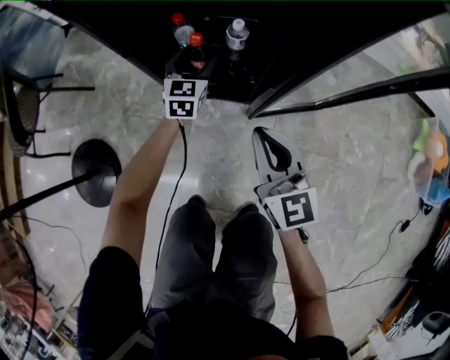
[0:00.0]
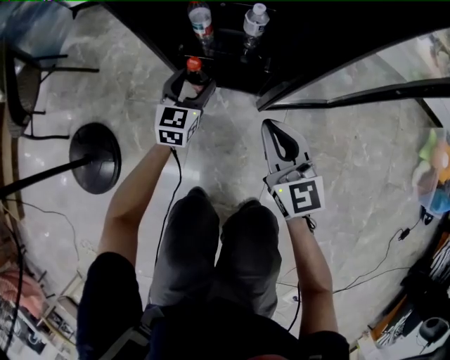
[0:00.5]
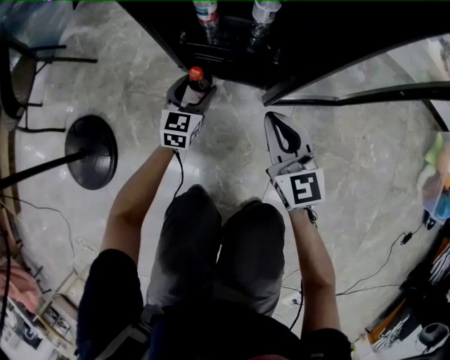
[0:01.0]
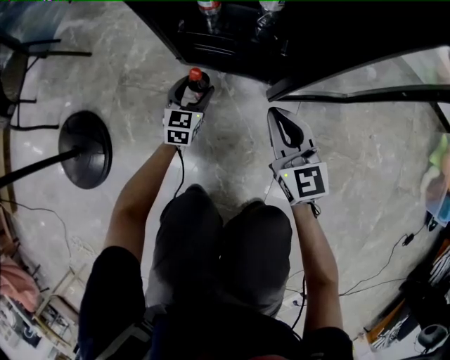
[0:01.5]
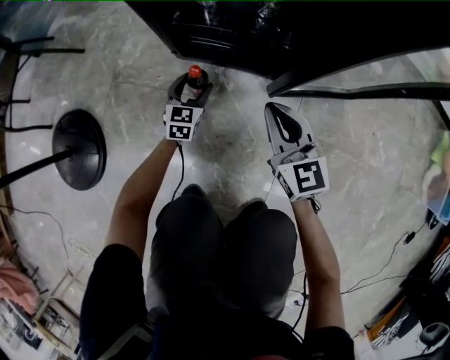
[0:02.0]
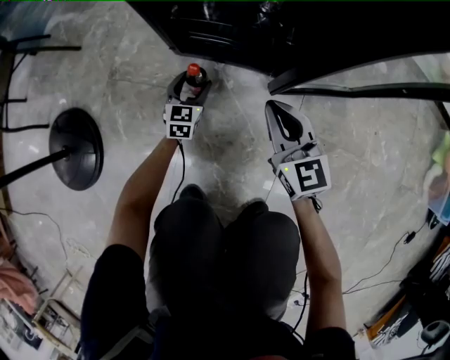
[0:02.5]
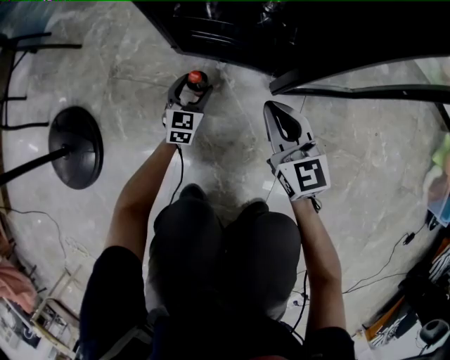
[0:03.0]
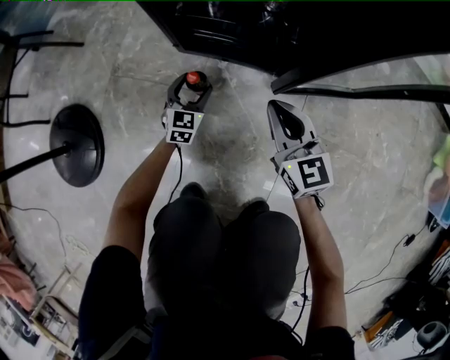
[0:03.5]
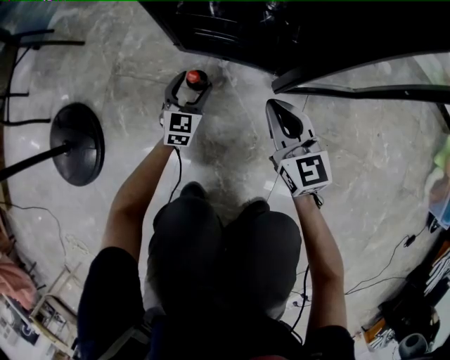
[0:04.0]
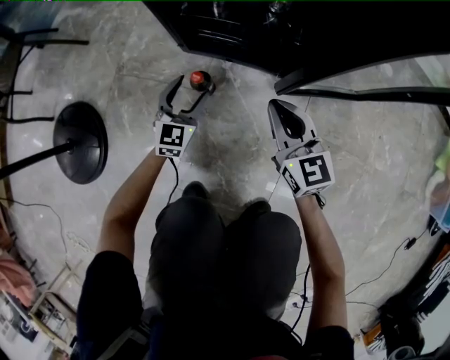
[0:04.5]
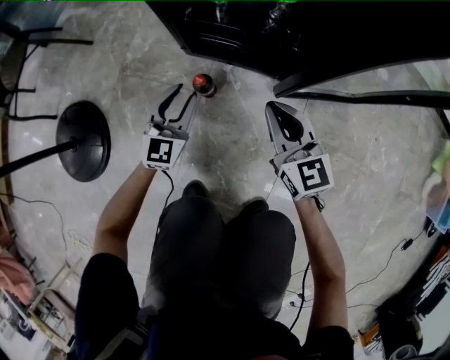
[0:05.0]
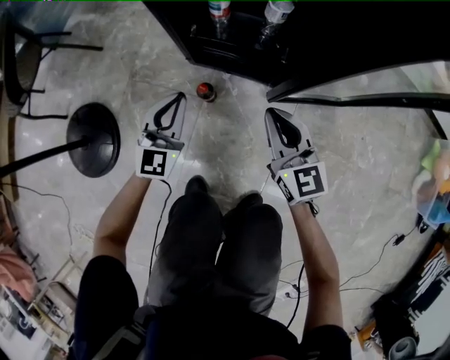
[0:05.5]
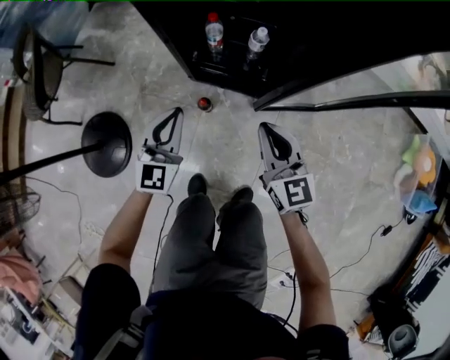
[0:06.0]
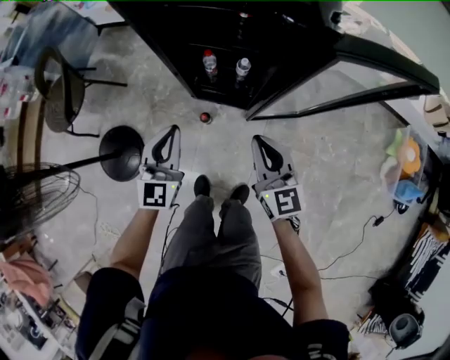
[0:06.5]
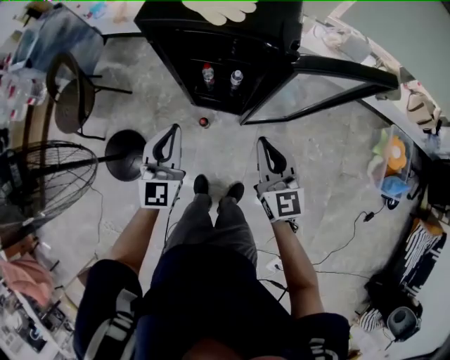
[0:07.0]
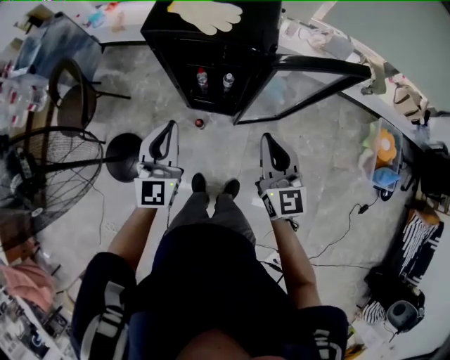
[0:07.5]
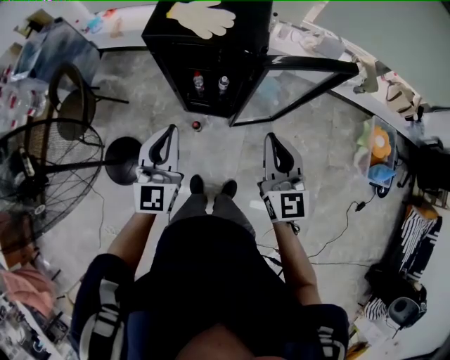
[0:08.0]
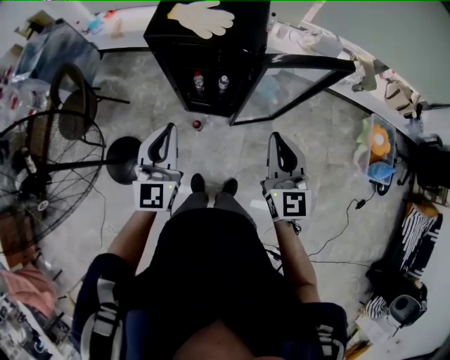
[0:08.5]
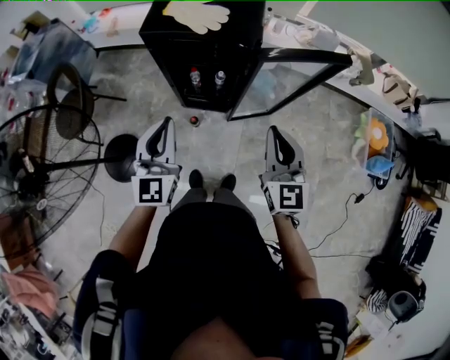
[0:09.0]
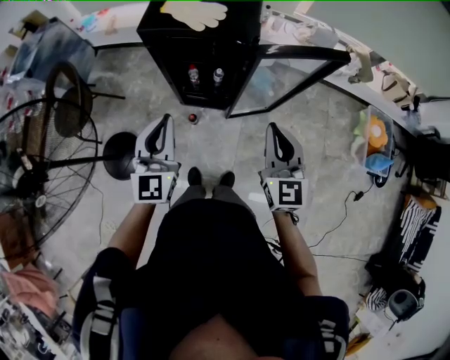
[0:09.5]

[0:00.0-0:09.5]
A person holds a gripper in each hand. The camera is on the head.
0:00.0 to 0:02.0: The right gripper travels downward by some 20 cm, while the left gripper moves downward and backward, approximately 30 cm.
0:02.0 to 0:04.0: The grippers make only small movements.
0:04.0 to 0:05.5: The right gripper moves upward, roughly 15 cm. The left gripper moves upward, some 25 cm, and closes.
0:05.5 to 0:07.5: Both grippers travel together upward, approximately 70 cm.
0:07.5 to 0:09.5: Both grippers travel together upward, about 5 cm.

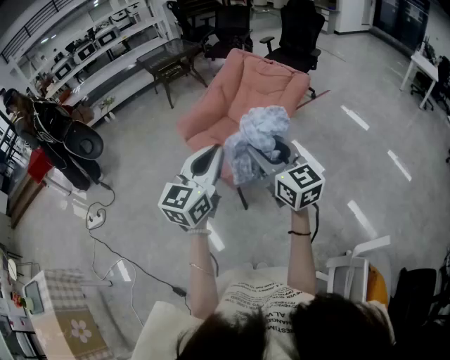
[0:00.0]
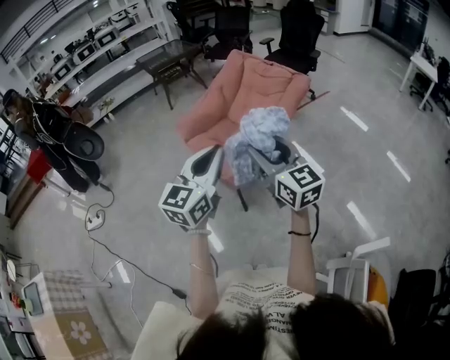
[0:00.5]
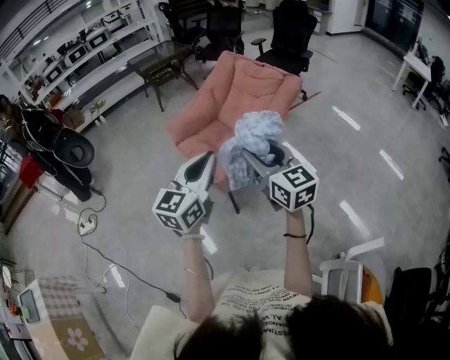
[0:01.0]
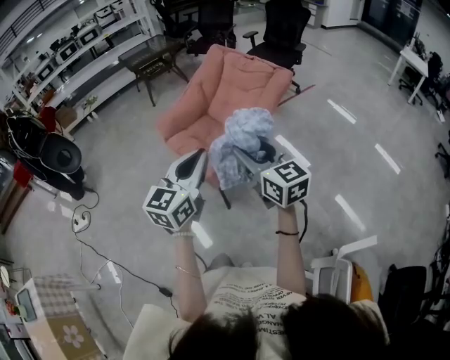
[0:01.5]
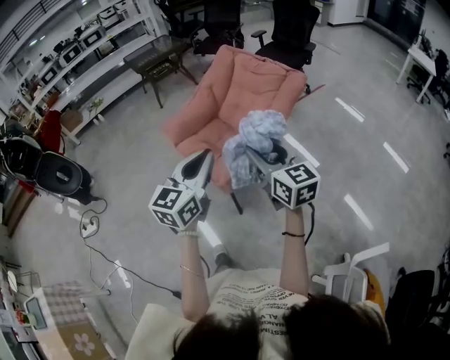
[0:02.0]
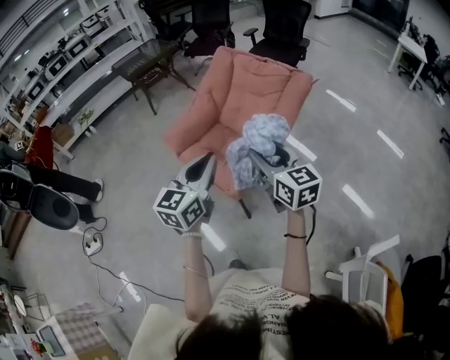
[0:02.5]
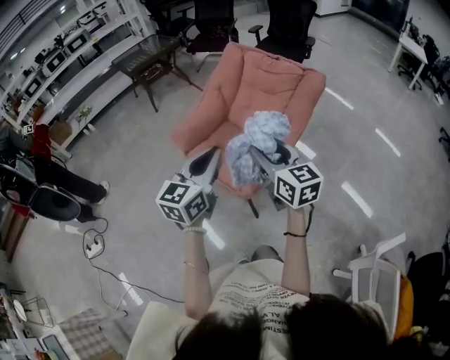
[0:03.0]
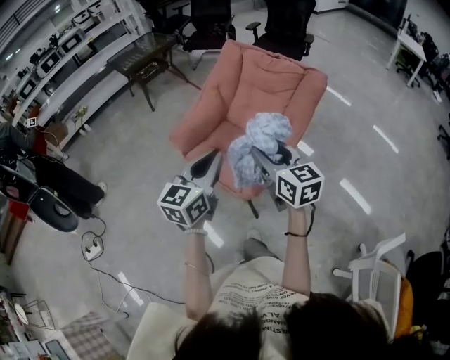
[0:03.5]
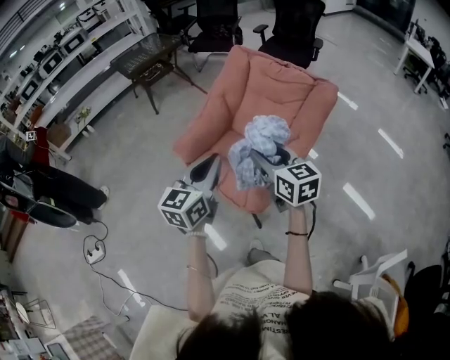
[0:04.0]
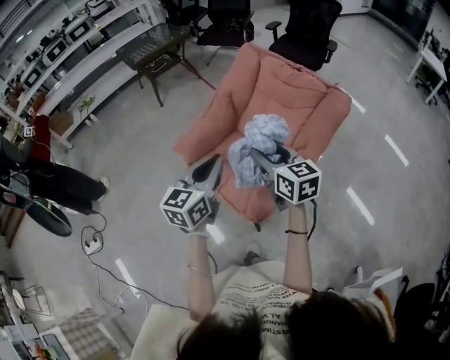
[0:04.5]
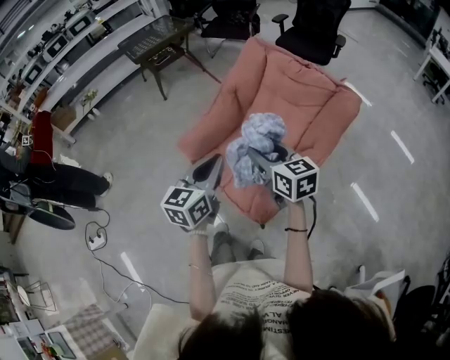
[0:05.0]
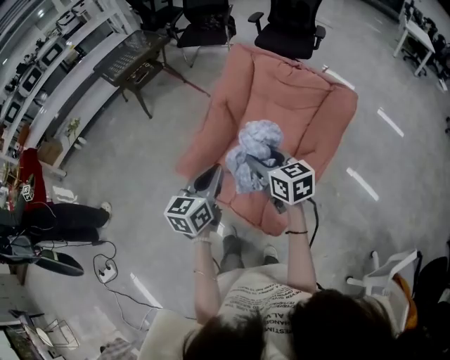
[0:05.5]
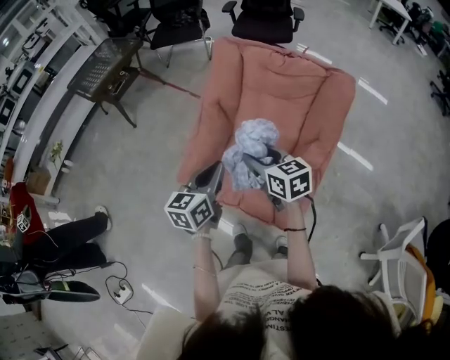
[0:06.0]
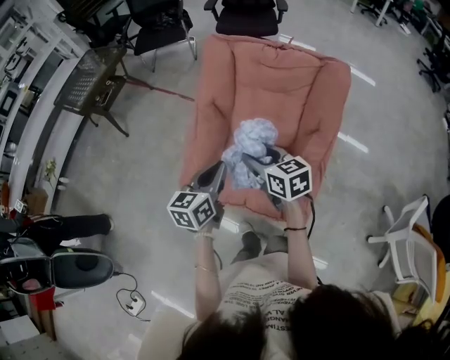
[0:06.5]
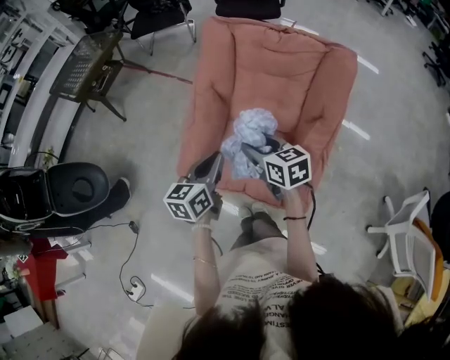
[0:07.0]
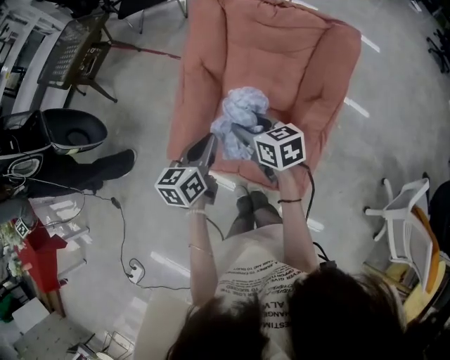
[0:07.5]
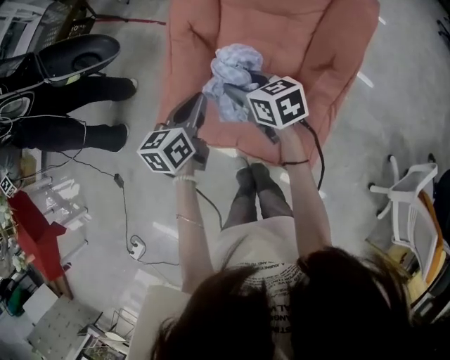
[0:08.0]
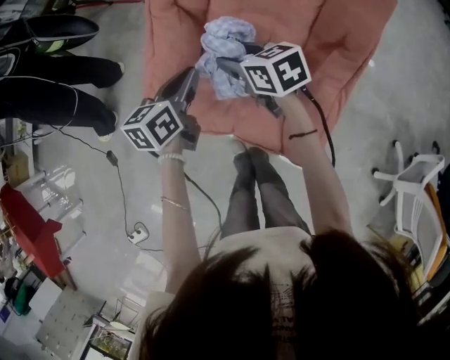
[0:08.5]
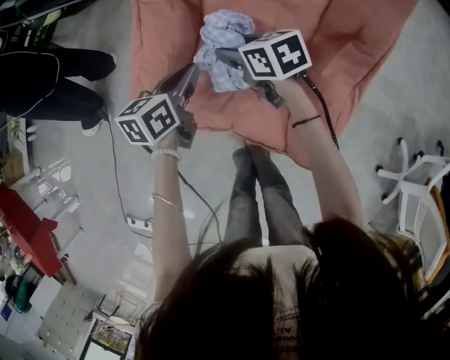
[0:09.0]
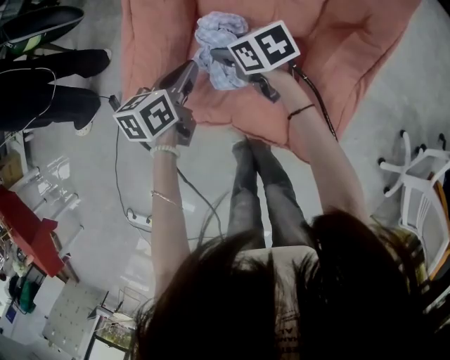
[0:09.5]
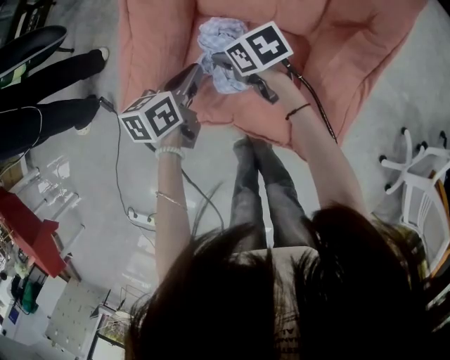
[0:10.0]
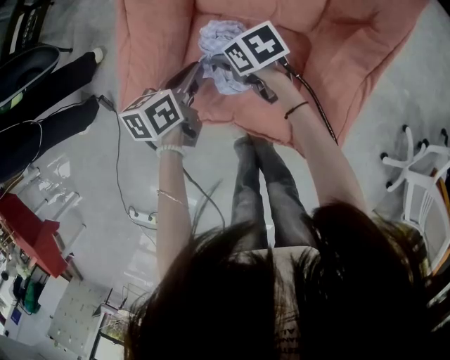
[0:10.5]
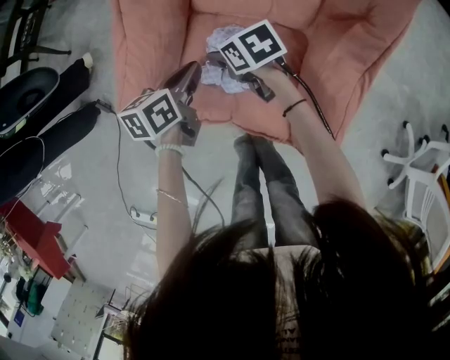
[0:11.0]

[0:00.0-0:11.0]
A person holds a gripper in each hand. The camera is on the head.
0:00.0 to 0:02.0: Both grippers move forward and downward, roughly 10 cm.
0:02.0 to 0:03.5: The grippers both shift to the left and forward by roughly 20 cm.
0:03.5 to 0:05.5: Both grippers travel together forward, some 25 cm.
0:05.5 to 0:07.5: The left gripper is displaced downward and forward by about 15 cm; the right gripper travels downward, forward and to the left by some 15 cm.
0:07.5 to 0:09.0: The grippers both shift downward and forward by some 25 cm.
0:09.0 to 0:11.0: Both grippers travel together downward, approximately 10 cm.

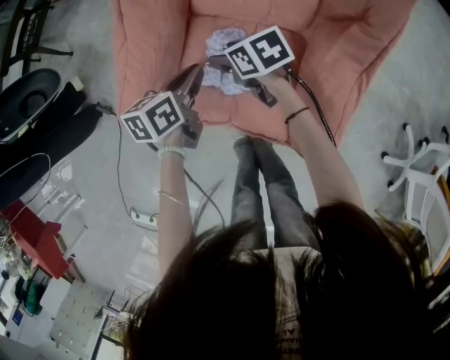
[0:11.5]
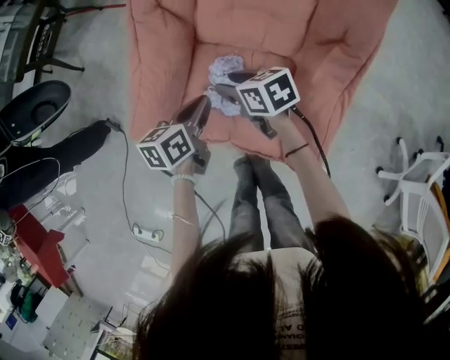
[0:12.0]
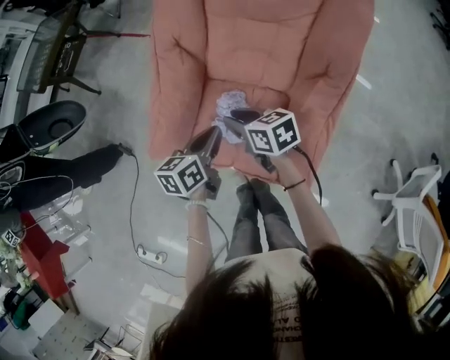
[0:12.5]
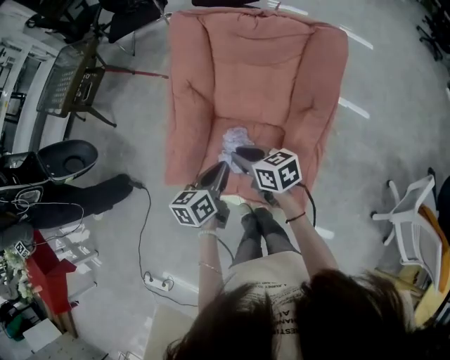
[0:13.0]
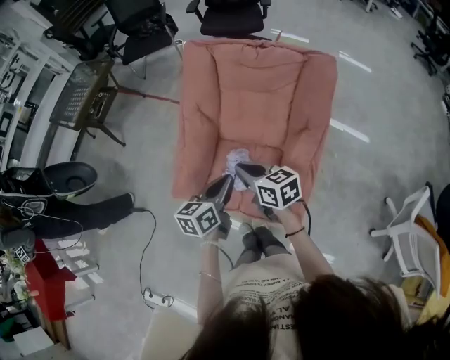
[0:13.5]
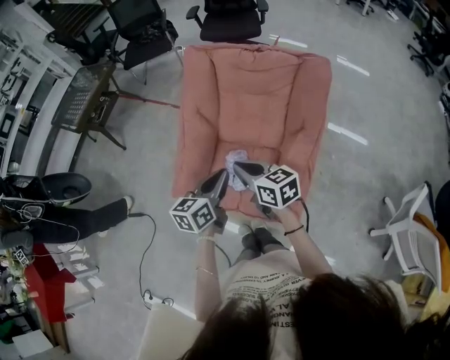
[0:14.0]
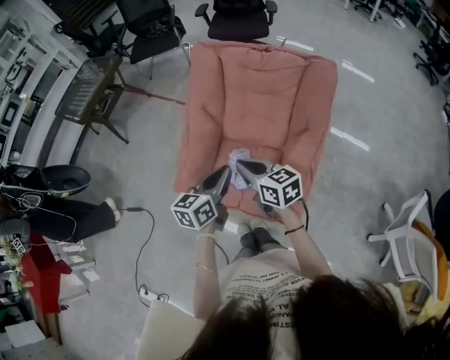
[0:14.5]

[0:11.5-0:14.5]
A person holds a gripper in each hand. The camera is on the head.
0:11.5 to 0:13.0: The left gripper heads upward and backward, covering roughly 25 cm. The right gripper shifts about 25 cm upward, changes its angle by some 20 degrees, and closes its fingers.
0:13.0 to 0:14.5: Both grippers move upward, approximately 10 cm.

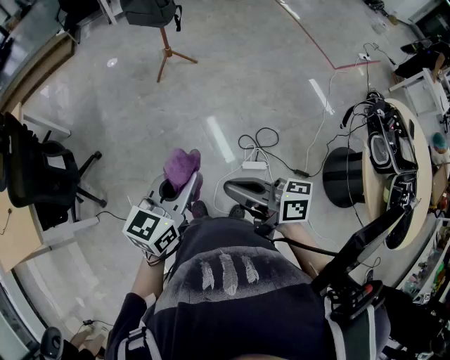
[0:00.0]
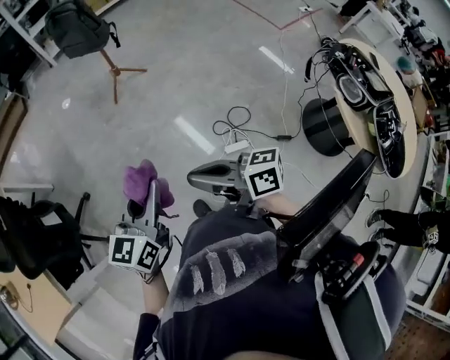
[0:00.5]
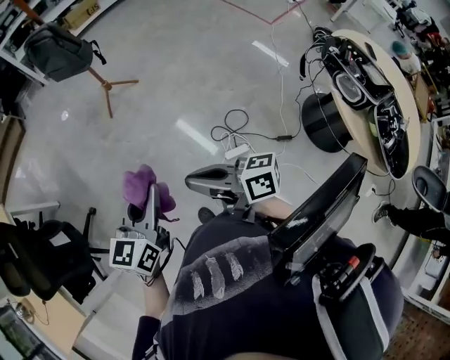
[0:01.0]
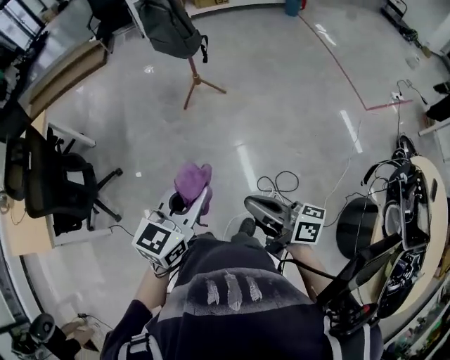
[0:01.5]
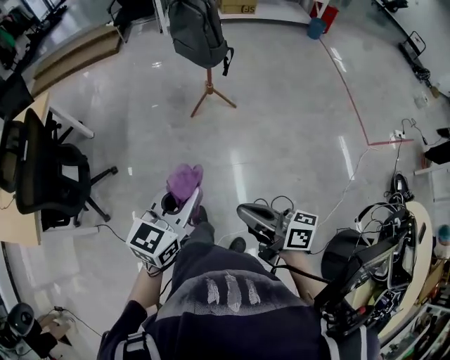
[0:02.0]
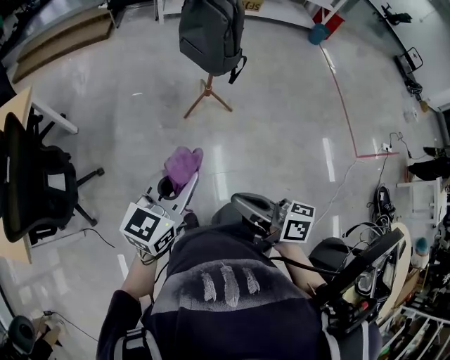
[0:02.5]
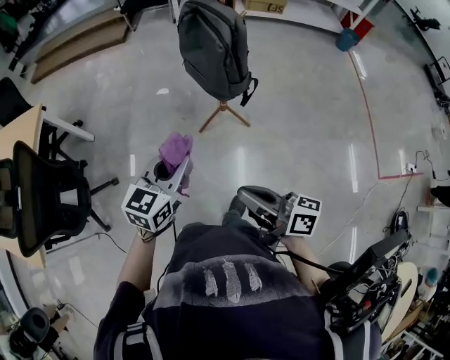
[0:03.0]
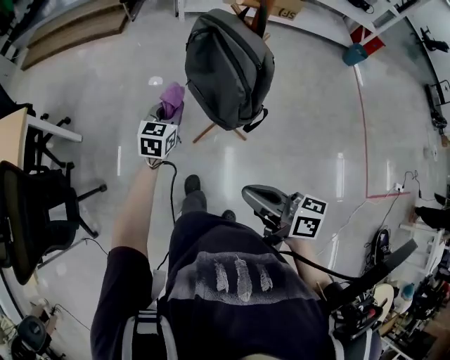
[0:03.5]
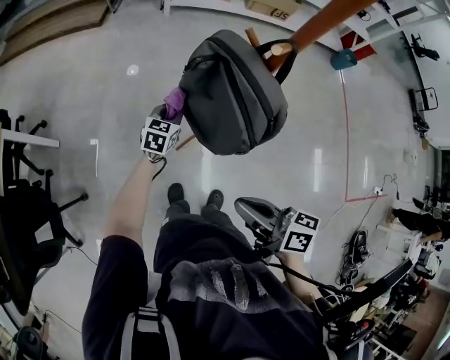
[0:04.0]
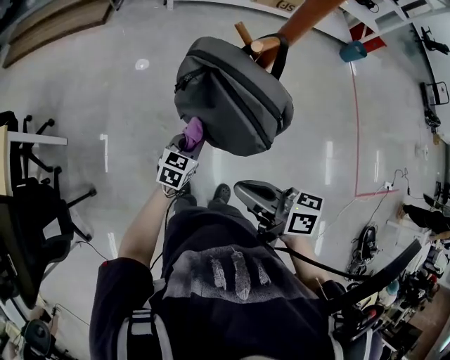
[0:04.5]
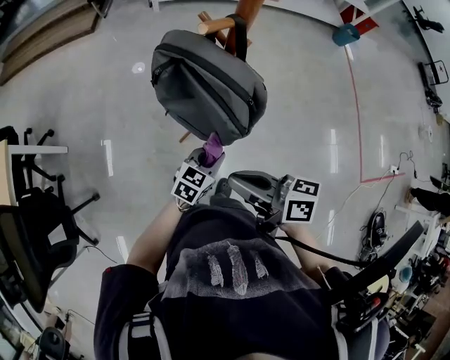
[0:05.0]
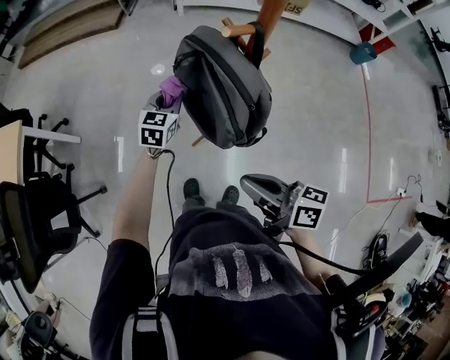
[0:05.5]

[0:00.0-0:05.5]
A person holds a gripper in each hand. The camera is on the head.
0:00.0 to 0:02.0: The two grippers go roughly 25 cm forward.
0:02.0 to 0:03.5: Both grippers are carried forward, roughly 60 cm. The left gripper turns by about 20 degrees.
0:03.5 to 0:05.5: The left gripper goes forward and backward, about 25 cm each way, reversing 2 times. The right gripper shifts some 10 cm forward and to the right.
